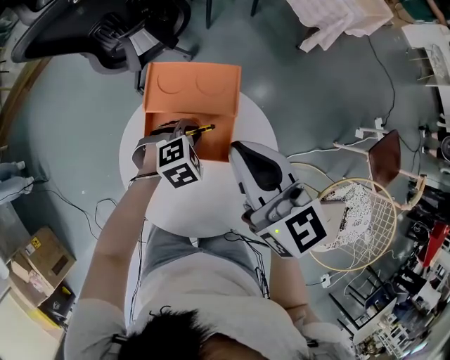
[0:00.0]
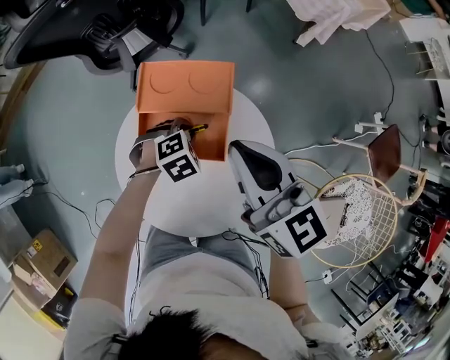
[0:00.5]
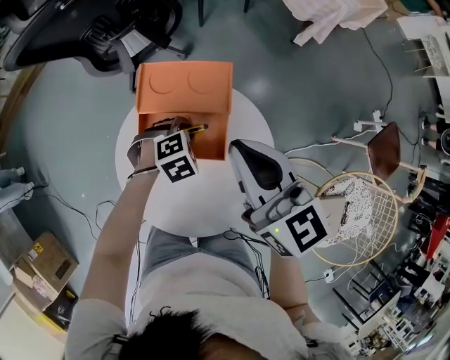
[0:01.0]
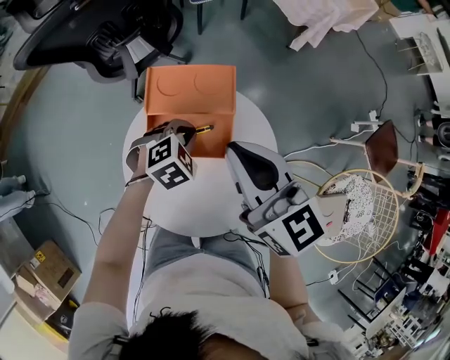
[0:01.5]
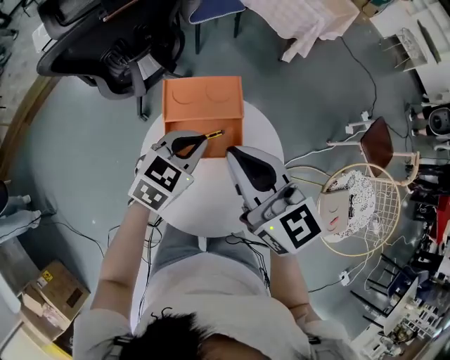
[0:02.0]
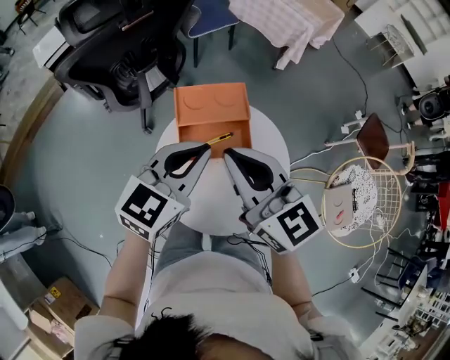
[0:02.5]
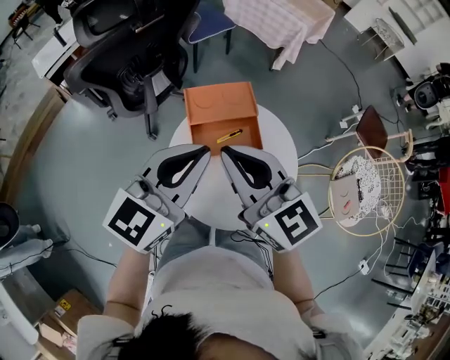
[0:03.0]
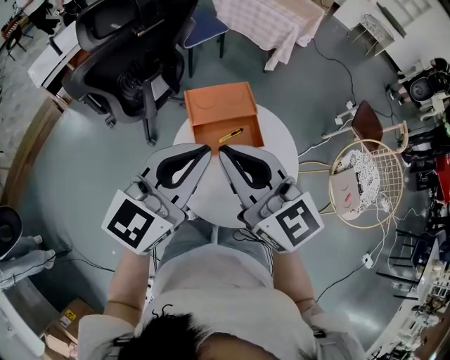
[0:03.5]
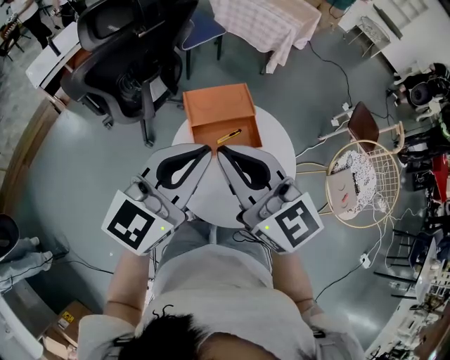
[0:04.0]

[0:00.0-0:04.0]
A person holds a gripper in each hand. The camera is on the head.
0:00.0 to 0:02.0: The left gripper shifts roughly 15 cm upward, and turns by roughly 40 degrees. The right gripper shifts roughly 5 cm to the left.
0:02.0 to 0:04.0: The right gripper shifts about 15 cm to the left, backward and upward. Meanwhile the left gripper goes roughly 25 cm upward, backward and to the left, and points its fingers approximately 40 degrees further upward.

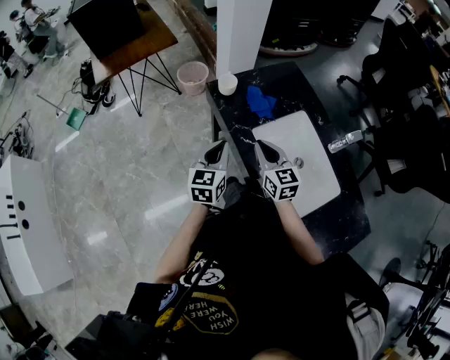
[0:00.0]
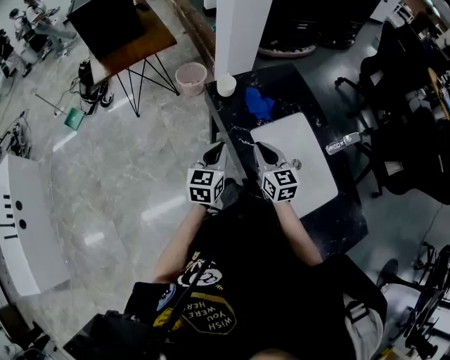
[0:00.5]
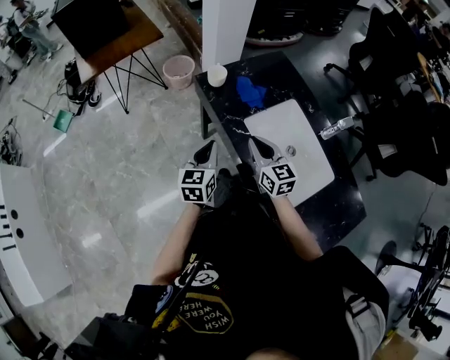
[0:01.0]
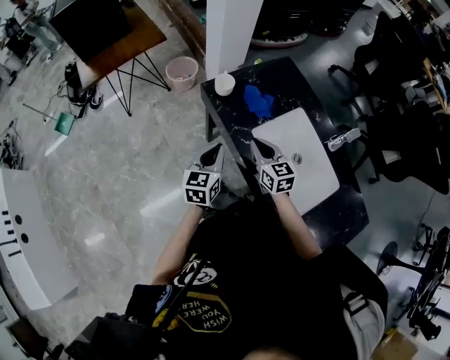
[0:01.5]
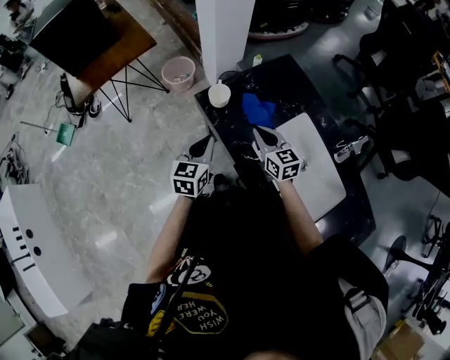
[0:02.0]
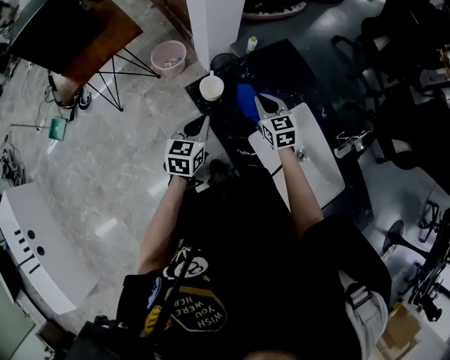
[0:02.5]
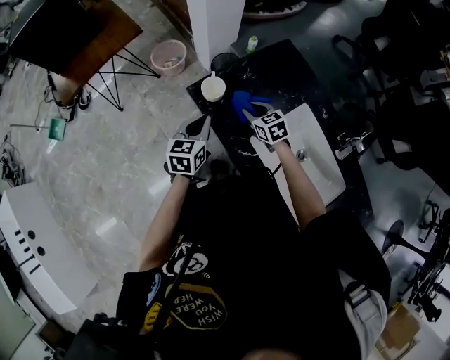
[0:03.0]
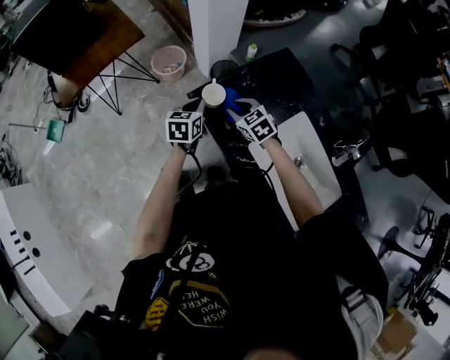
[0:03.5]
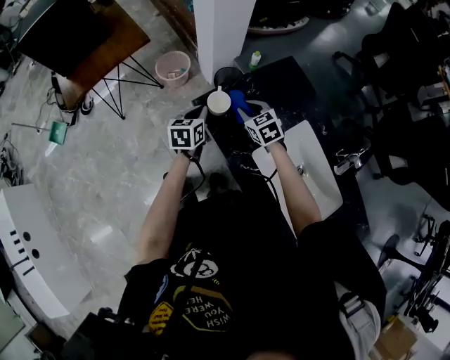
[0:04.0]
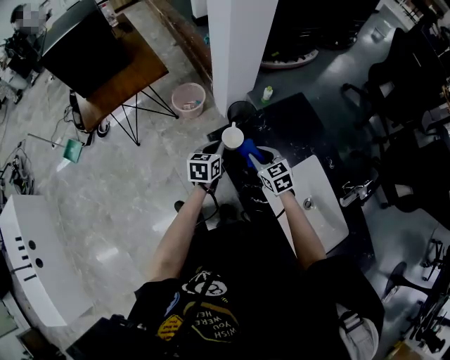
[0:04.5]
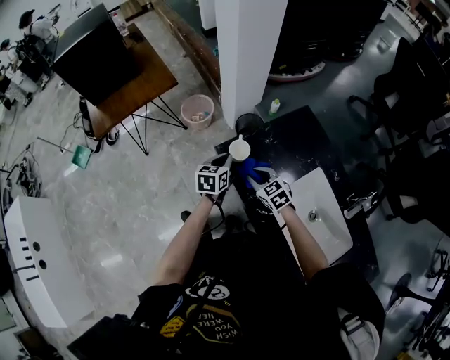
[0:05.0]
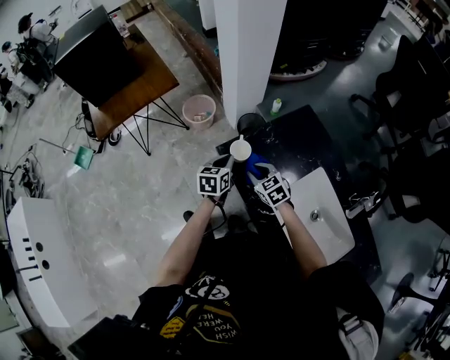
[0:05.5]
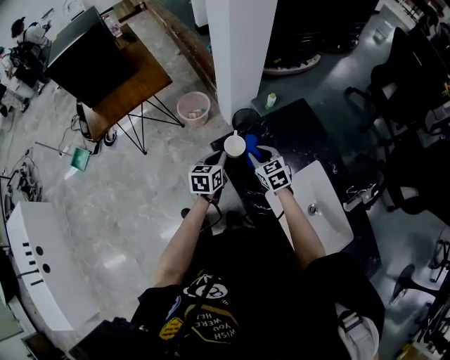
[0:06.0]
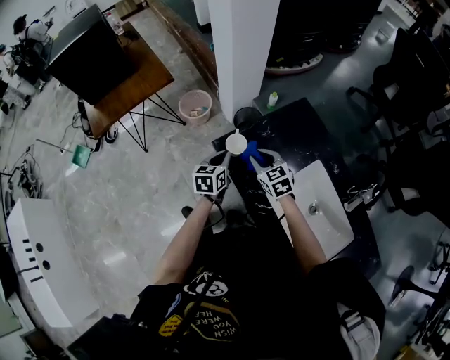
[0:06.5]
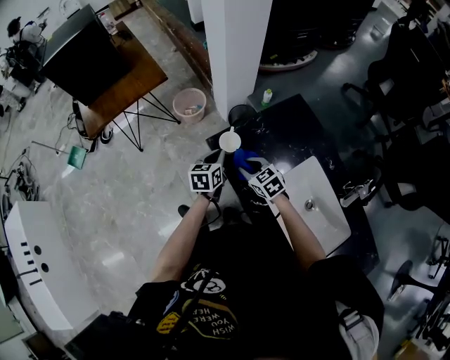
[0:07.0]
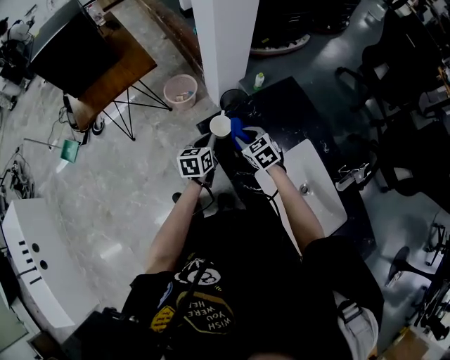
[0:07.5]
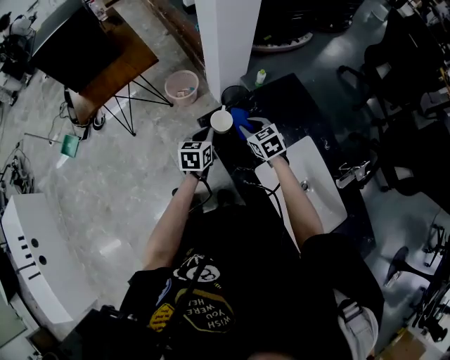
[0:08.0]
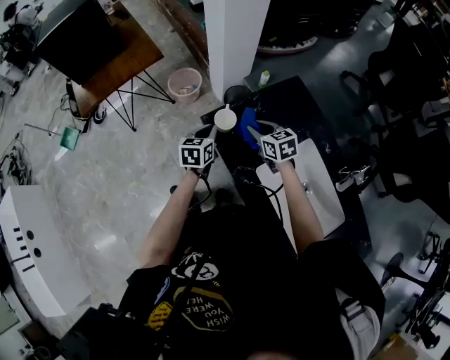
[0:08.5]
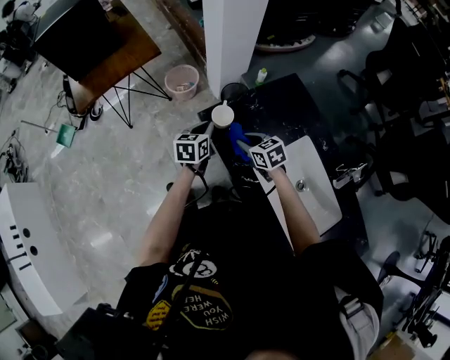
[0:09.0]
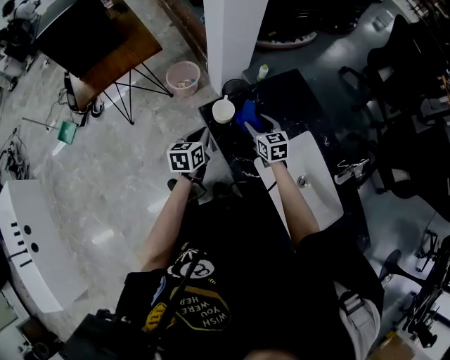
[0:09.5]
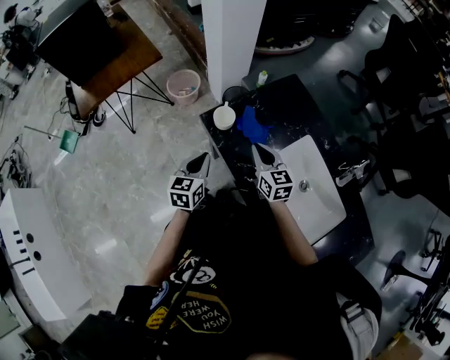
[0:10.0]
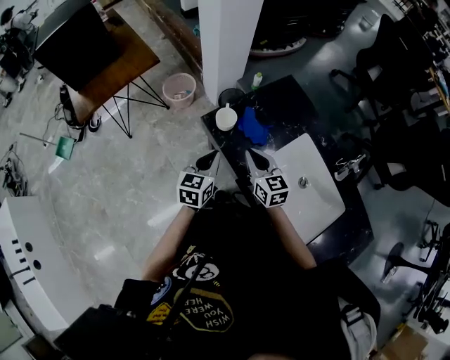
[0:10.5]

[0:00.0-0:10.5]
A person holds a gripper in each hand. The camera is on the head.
0:00.0 to 0:02.0: The left gripper goes approximately 10 cm forward. The right gripper moves forward and downward, some 15 cm.
0:02.0 to 0:04.0: Both grippers move forward and downward, roughly 15 cm. The right gripper swivels approximately 30 degrees, and opens its fingers.
0:08.5 to 0:10.5: The left gripper is displaced backward and upward by approximately 15 cm. The right gripper swings forward and backward, approximately 10 cm each way, with 2 reversals, rotates roughly 20 degrees, and opens, then closes once more.

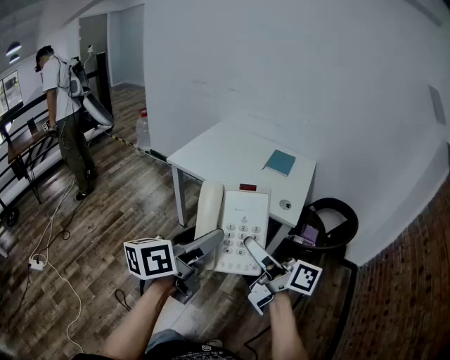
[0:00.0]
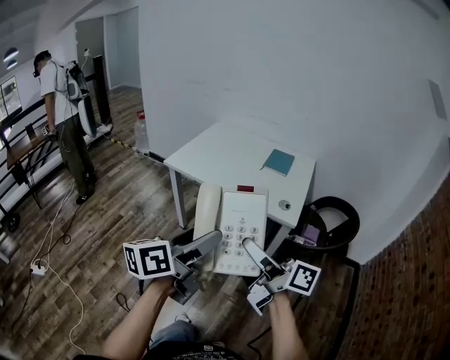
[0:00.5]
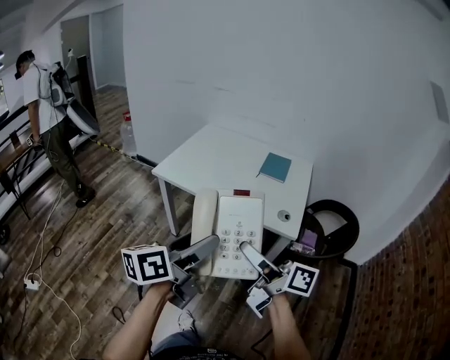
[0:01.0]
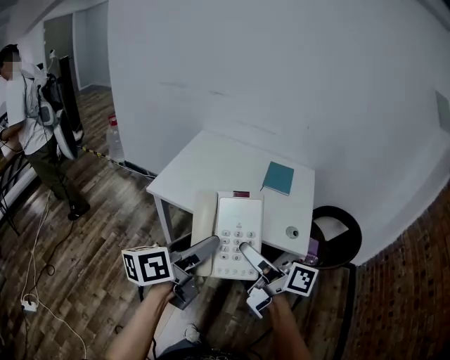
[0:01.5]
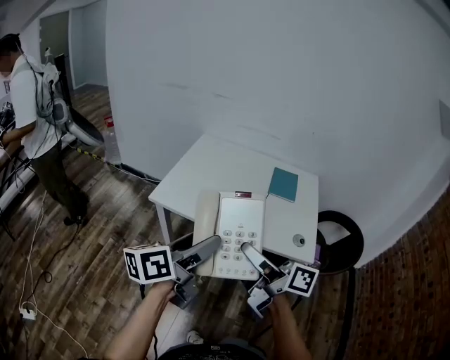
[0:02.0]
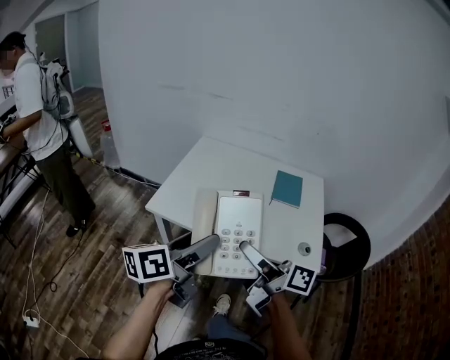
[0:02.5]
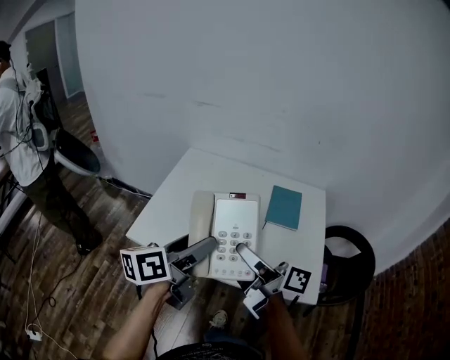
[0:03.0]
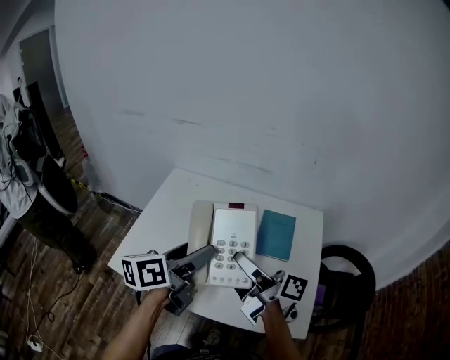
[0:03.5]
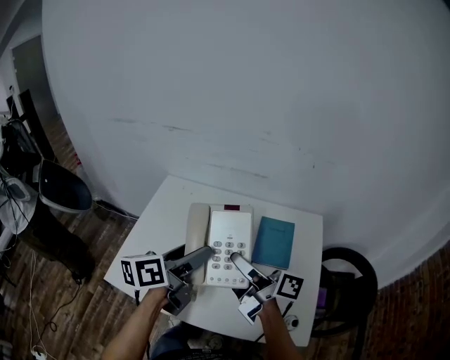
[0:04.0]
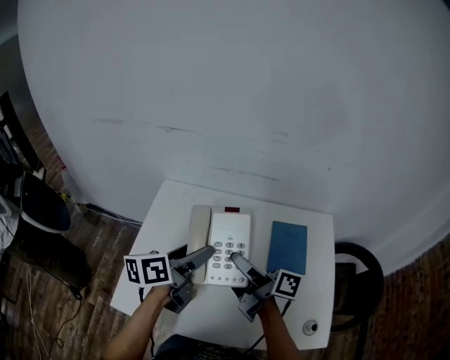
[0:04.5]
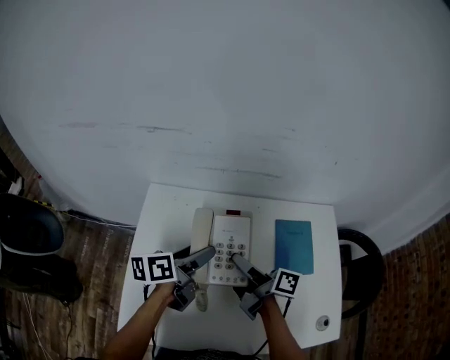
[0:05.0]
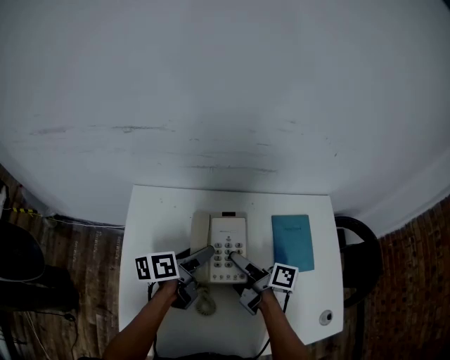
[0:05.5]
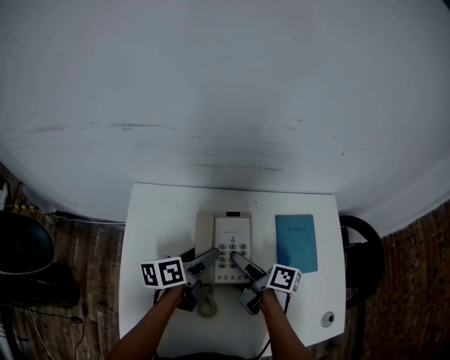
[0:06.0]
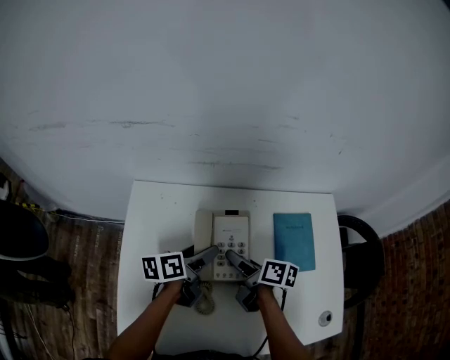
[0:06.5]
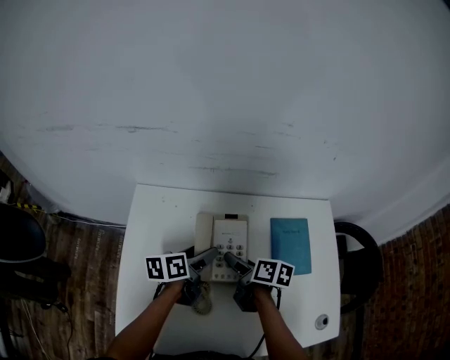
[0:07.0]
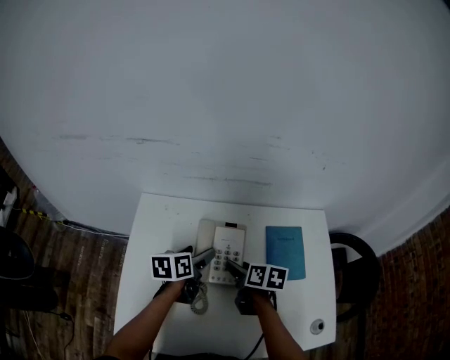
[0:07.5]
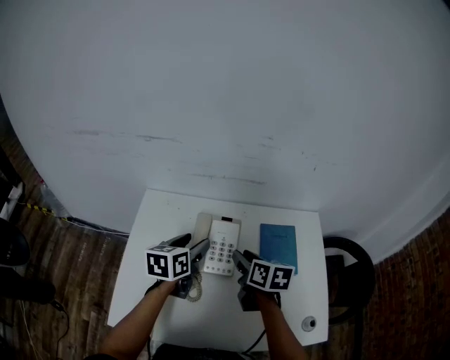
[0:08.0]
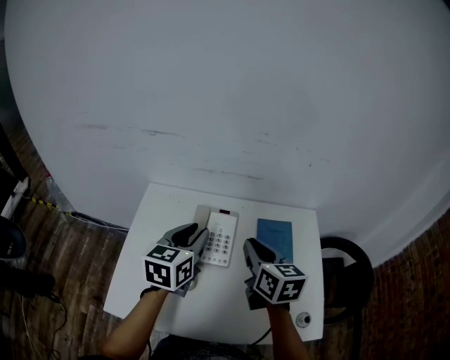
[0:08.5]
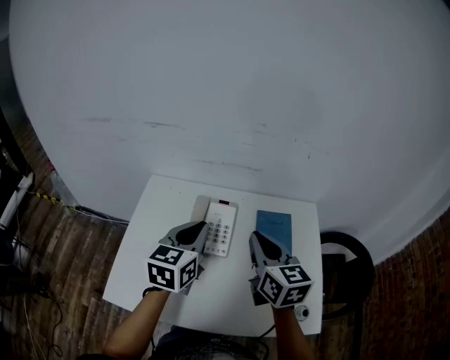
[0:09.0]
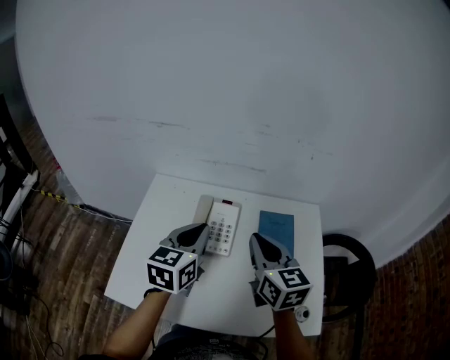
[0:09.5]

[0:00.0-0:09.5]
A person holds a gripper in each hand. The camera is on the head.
0:00.0 to 0:02.0: Both grippers move forward, some 25 cm.
0:02.0 to 0:04.0: Both grippers move forward, roughly 40 cm.
0:04.0 to 0:05.5: The right gripper heads downward and forward, covering some 25 cm, and changes its angle by some 30 degrees. Meanwhile the left gripper shifts roughly 25 cm forward and downward, and rotates approximately 30 degrees.
0:05.5 to 0:07.5: The right gripper angles its fingers downward, by some 30 degrees. The left gripper changes its angle by some 20 degrees.
0:07.5 to 0:09.5: The grippers both shift upward and backward by roughly 25 cm. The right gripper swivels about 50 degrees, and closes. The left gripper rotates some 40 degrees, and closes its fingers.

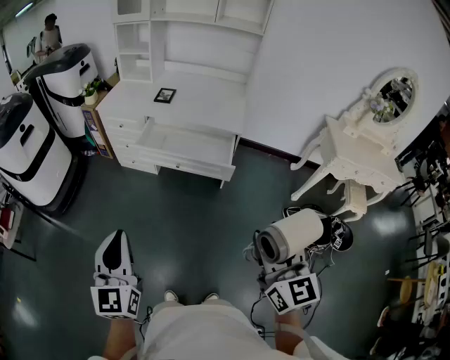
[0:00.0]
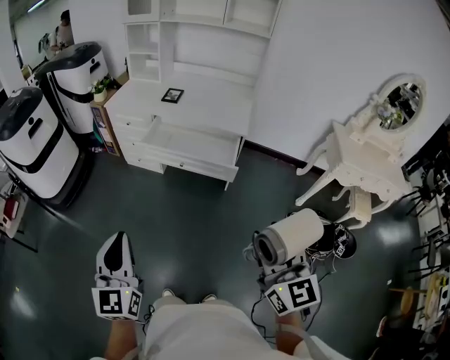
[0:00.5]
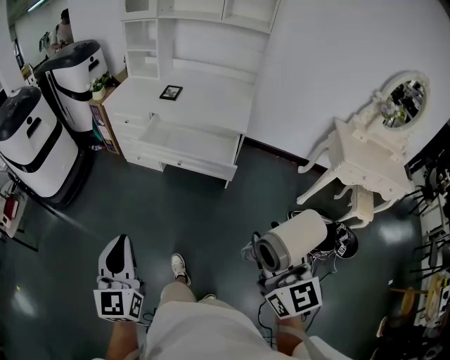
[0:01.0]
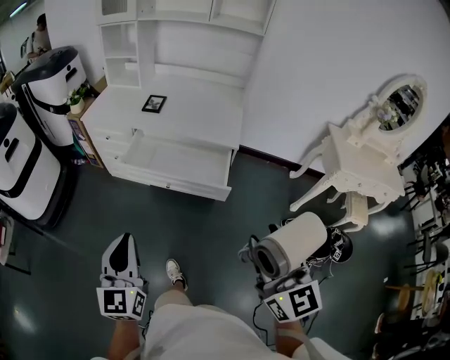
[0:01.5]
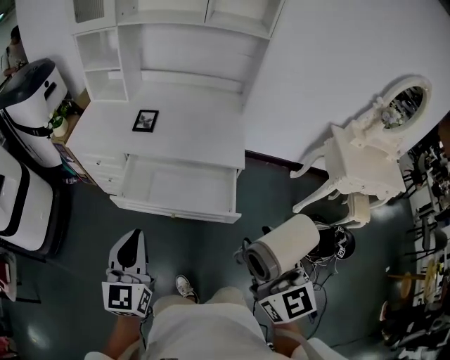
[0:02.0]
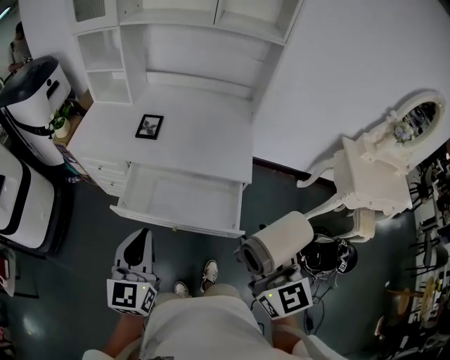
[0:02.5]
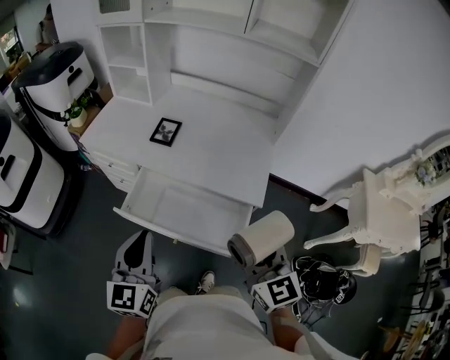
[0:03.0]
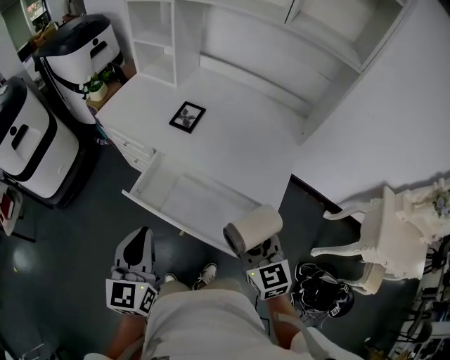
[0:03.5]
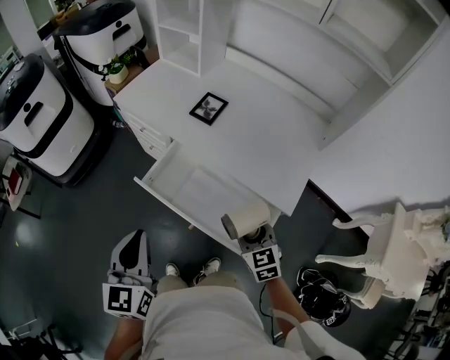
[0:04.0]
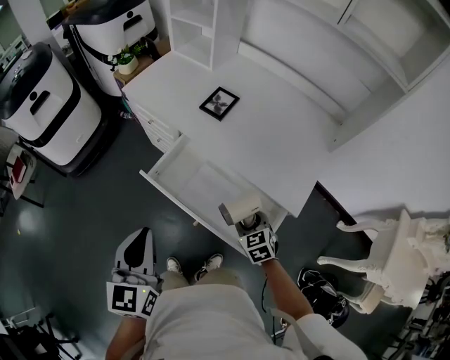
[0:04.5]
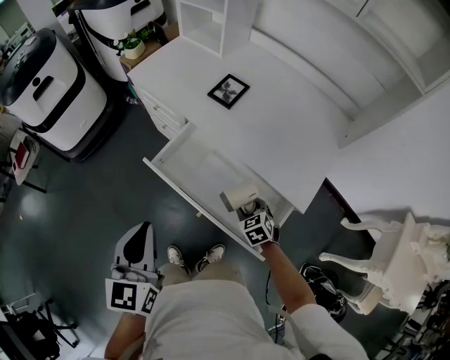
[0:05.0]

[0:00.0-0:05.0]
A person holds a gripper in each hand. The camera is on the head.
0:00.0 to 0:02.5: Both grippers move forward, some 40 cm.
0:02.5 to 0:05.0: The left gripper is displaced downward by some 5 cm, and turns by approximately 30 degrees. Meanwhile the right gripper is displaced downward by approximately 40 cm, and points its fingers roughly 50 degrees further downward.
